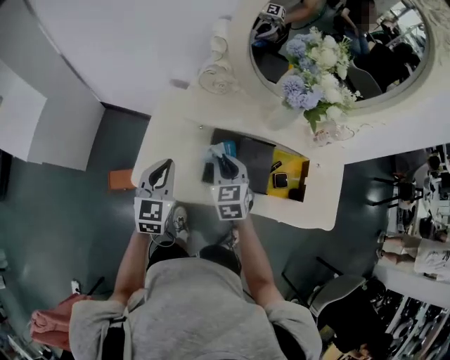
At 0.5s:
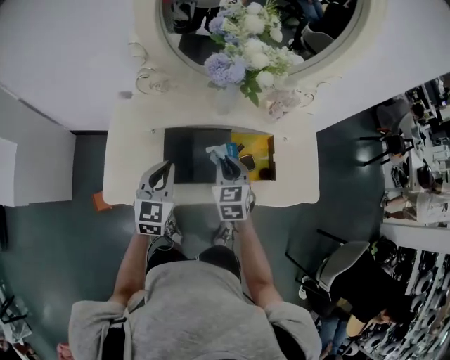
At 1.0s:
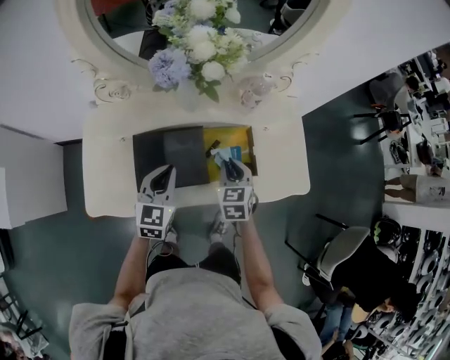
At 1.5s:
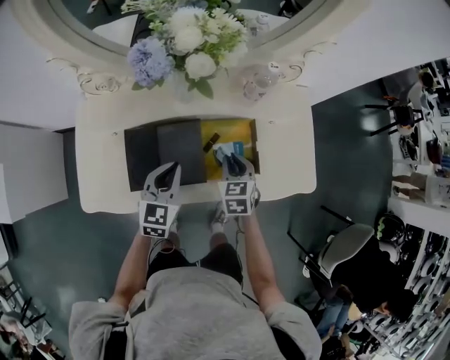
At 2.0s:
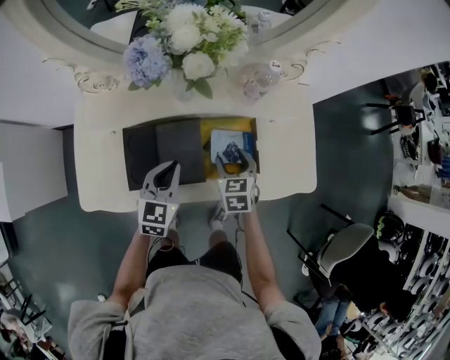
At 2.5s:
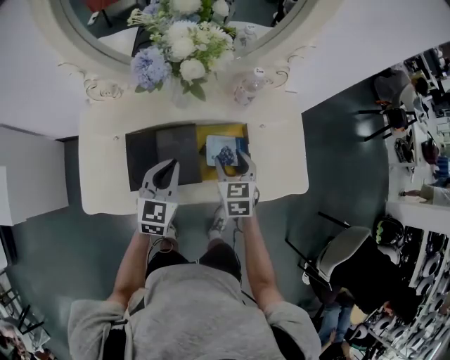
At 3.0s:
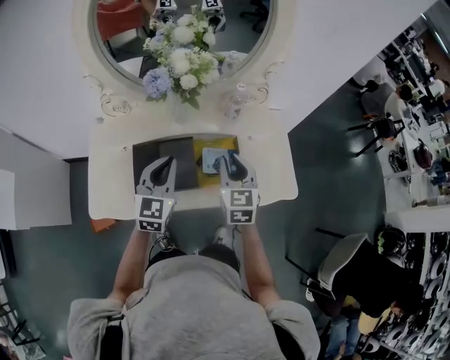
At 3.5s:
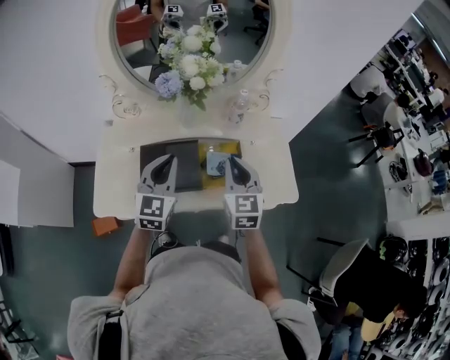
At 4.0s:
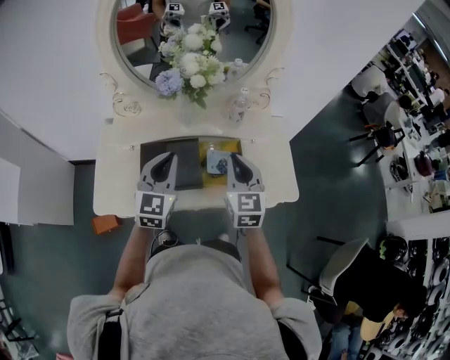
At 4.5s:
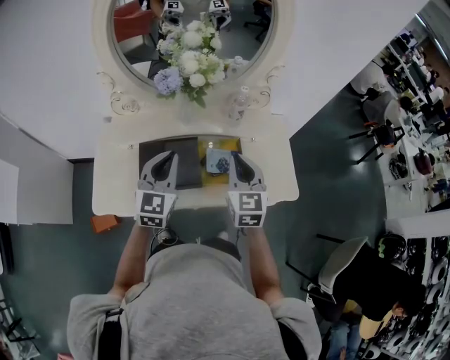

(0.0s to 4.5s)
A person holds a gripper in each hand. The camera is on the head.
0.0s - 2.0s: The left gripper moves to the right, approximately 25 cm, and turns by some 20 degrees. Meanwhile the right gripper travels to the right and downward by roughly 30 cm, turns by roughly 30 degrees, and opens its fingers.
2.0s - 4.5s: The two grippers go roughly 20 cm upward. The left gripper swivels some 20 degrees; the right gripper tips its fingers upward by approximately 30 degrees, and closes.

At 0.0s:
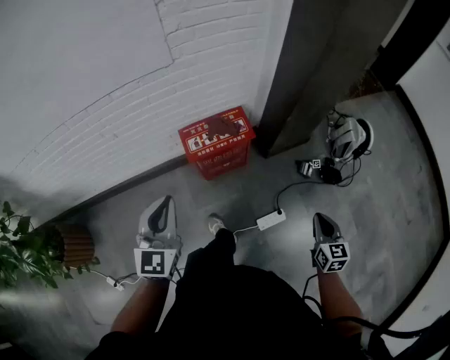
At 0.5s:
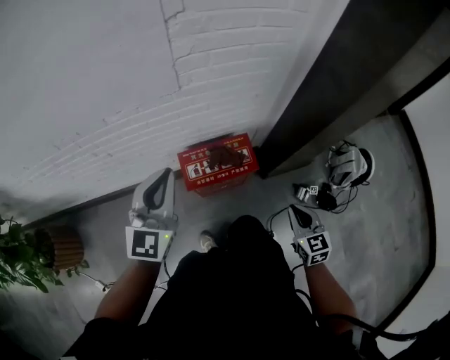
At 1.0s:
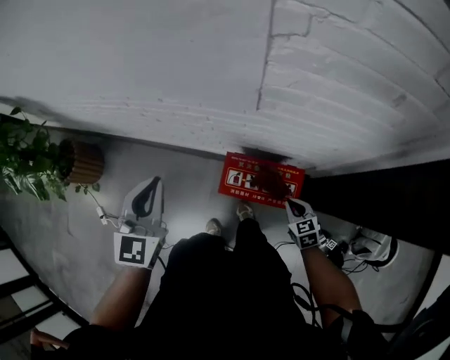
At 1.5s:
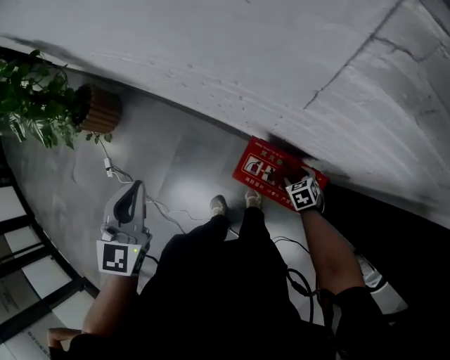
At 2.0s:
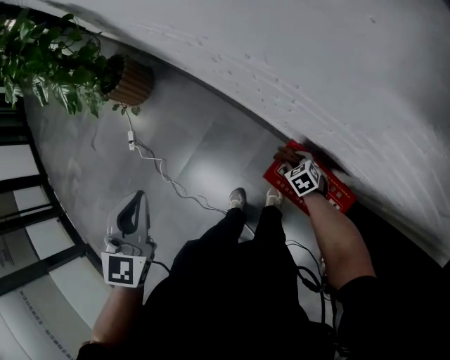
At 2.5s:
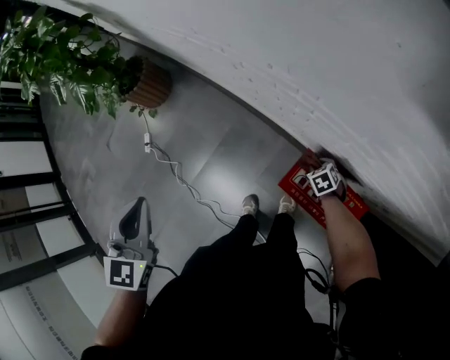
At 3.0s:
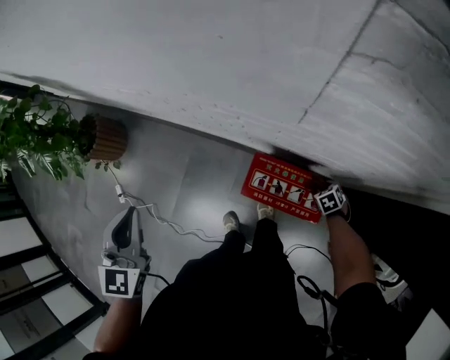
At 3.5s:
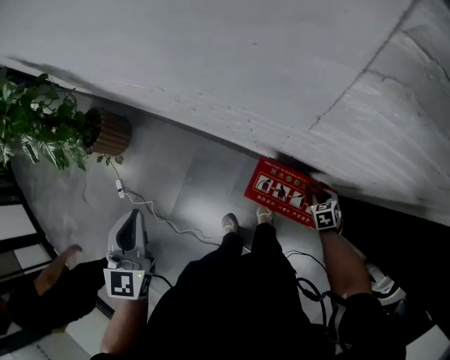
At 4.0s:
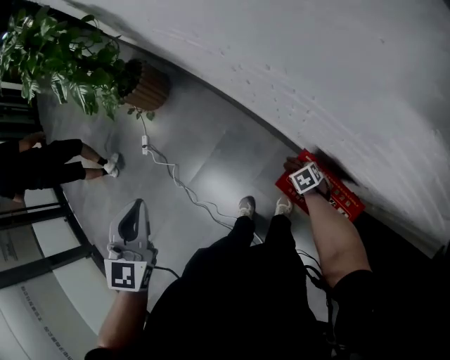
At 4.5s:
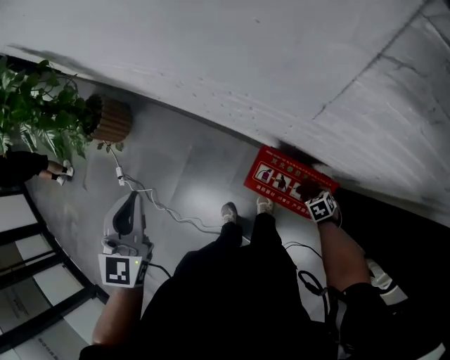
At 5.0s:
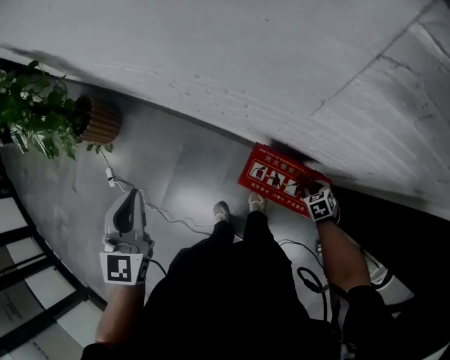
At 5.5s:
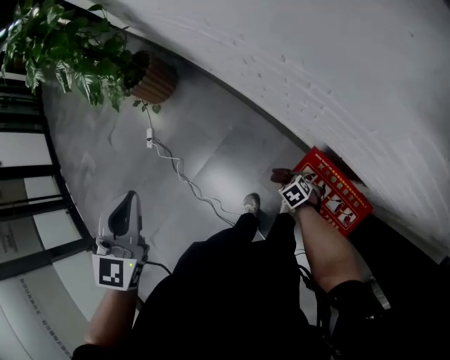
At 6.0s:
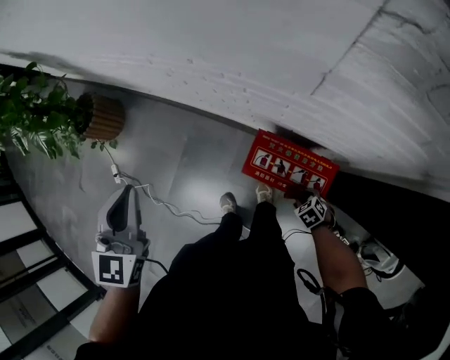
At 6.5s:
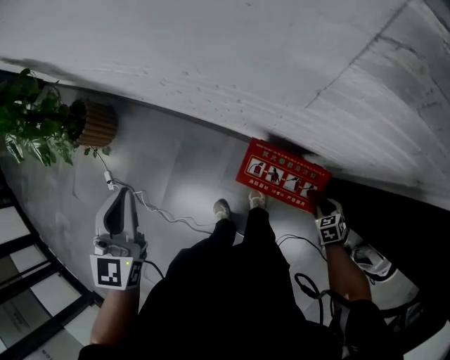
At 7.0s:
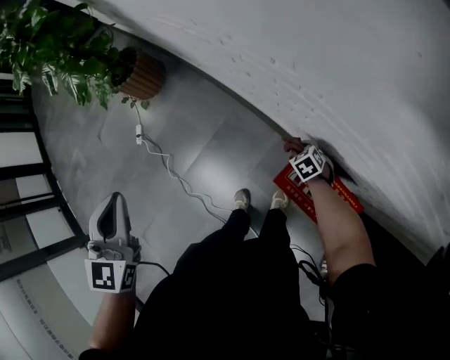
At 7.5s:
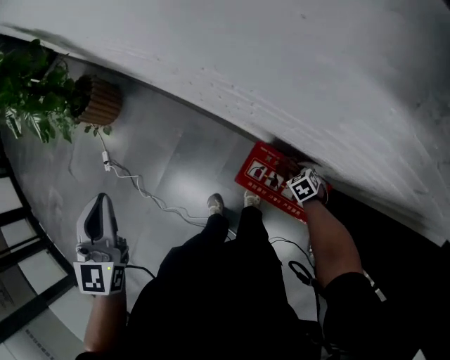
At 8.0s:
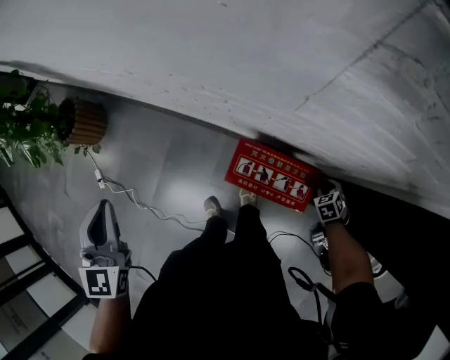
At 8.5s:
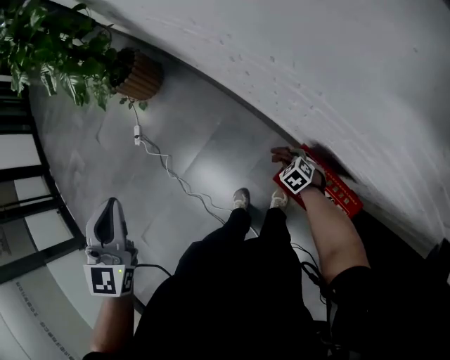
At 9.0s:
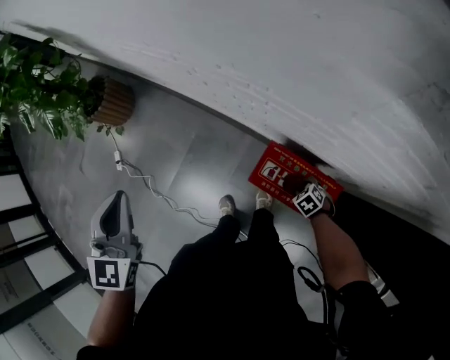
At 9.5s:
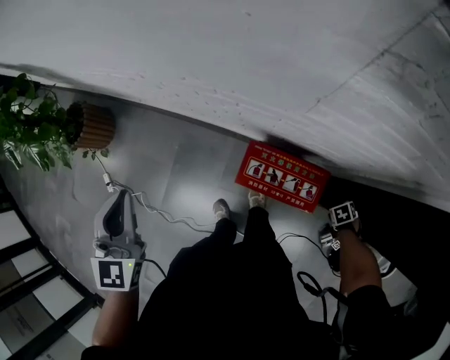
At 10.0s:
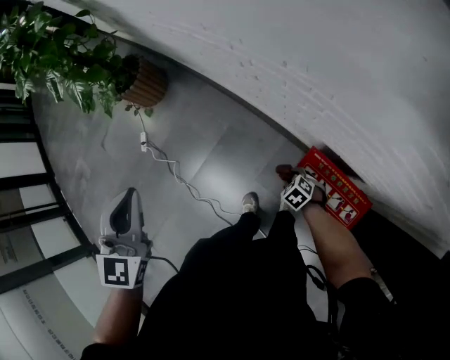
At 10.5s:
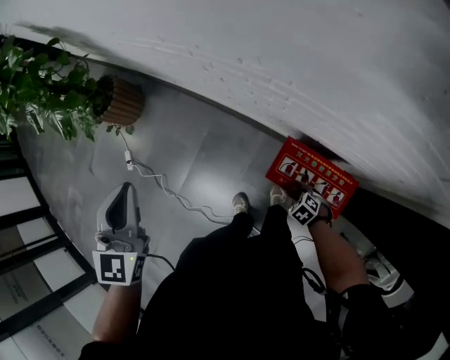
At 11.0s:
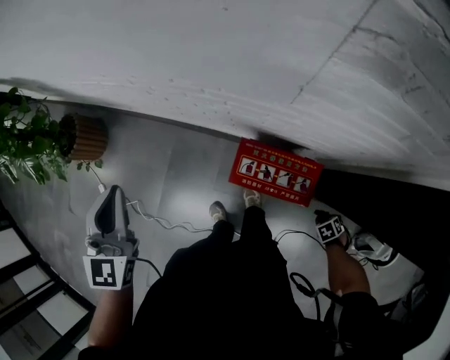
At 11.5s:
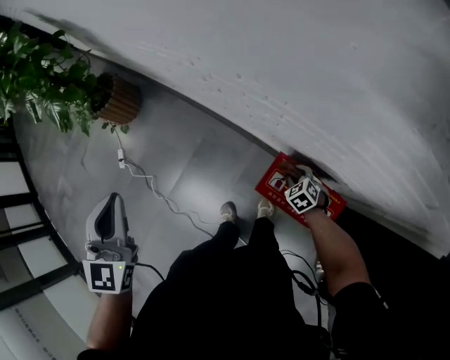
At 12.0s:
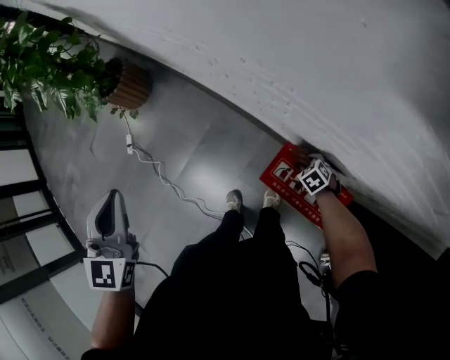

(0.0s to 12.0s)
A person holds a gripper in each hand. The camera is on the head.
0.0s - 2.0s: The right gripper shifts by approximately 70 cm, points its fingers approximately 30 degrees further downward, and opens. Meanwhile the left gripper moves some 20 cm, and swivels some 60 degrees.
2.0s - 4.0s: The left gripper changes place by roughly 5 cm.
4.0s - 6.0s: The left gripper ends up roughly 10 cm from where it was. The right gripper shifts by approximately 25 cm.
8.0s - 10.0s: The right gripper changes place by roughly 40 cm, and swivels approximately 40 degrees. Meanwhile the left gripper ends up some 10 cm from where it was.

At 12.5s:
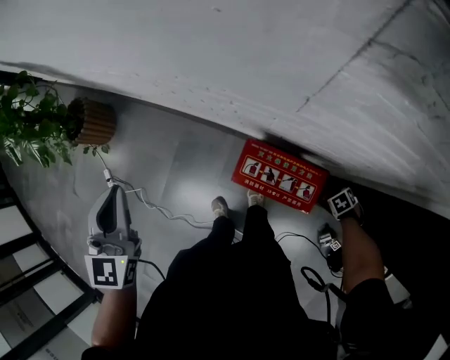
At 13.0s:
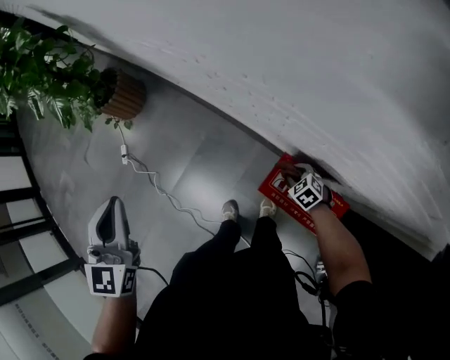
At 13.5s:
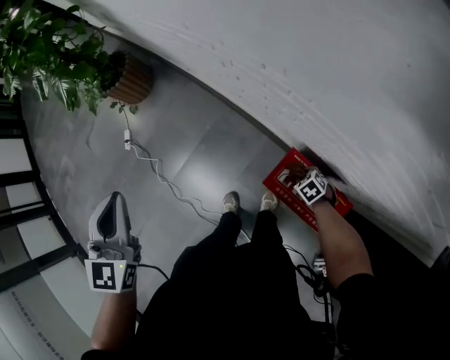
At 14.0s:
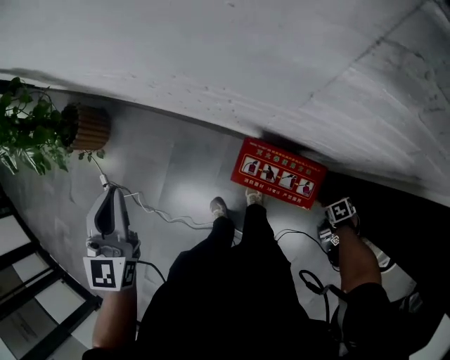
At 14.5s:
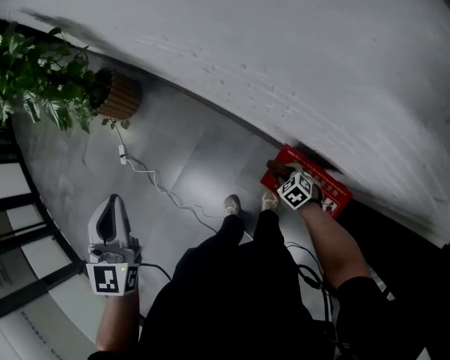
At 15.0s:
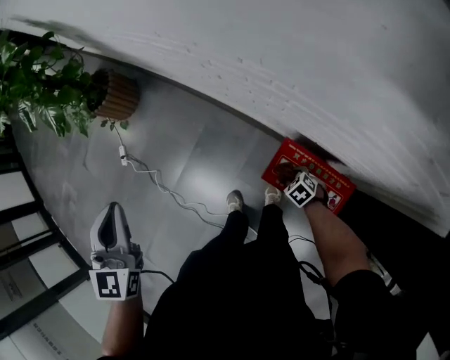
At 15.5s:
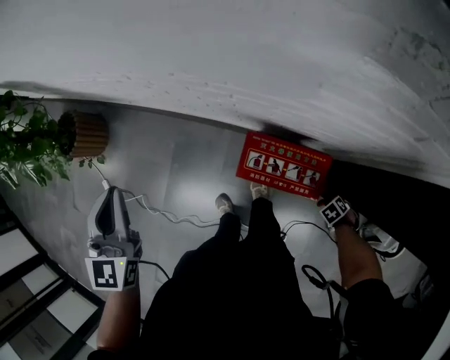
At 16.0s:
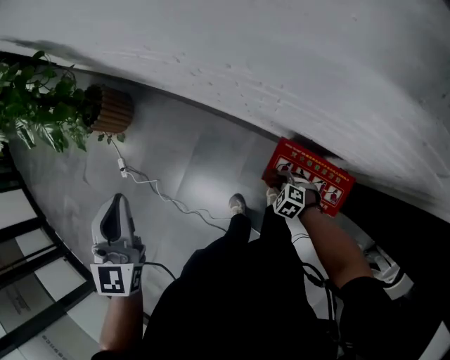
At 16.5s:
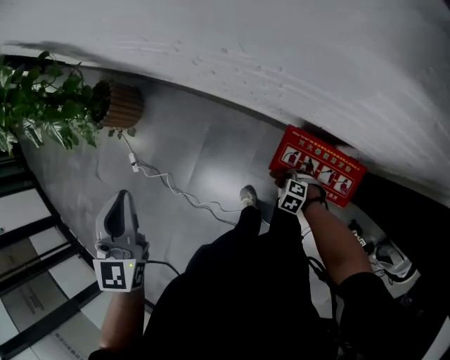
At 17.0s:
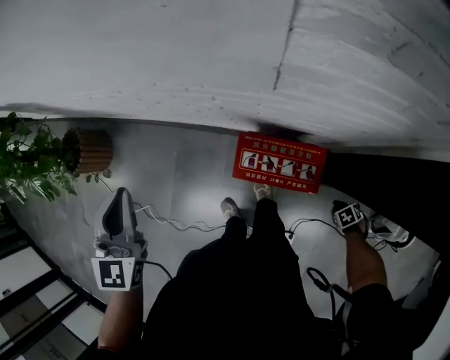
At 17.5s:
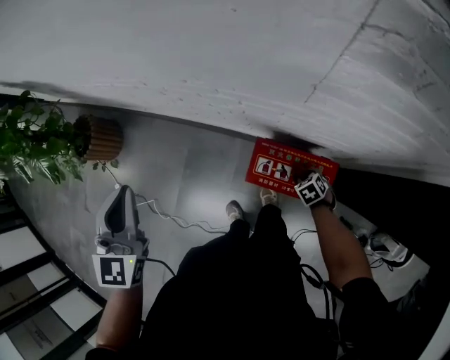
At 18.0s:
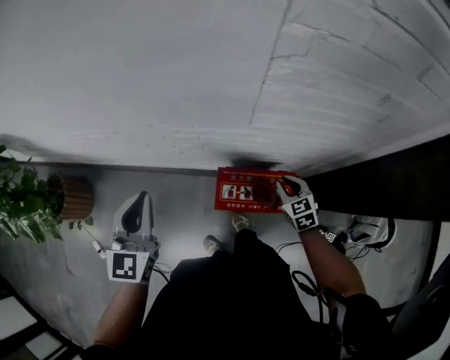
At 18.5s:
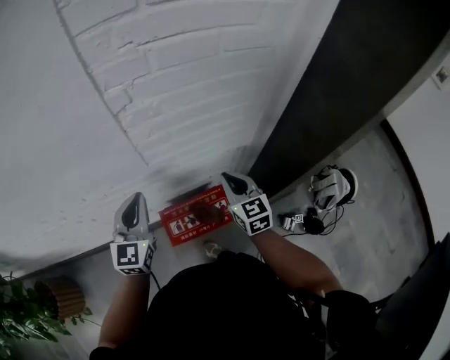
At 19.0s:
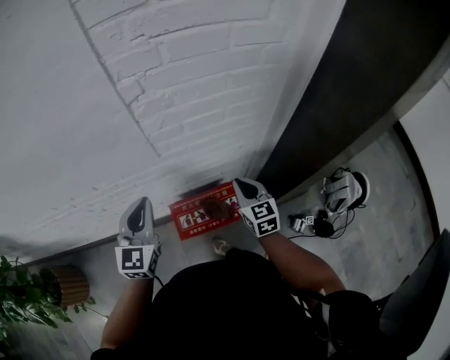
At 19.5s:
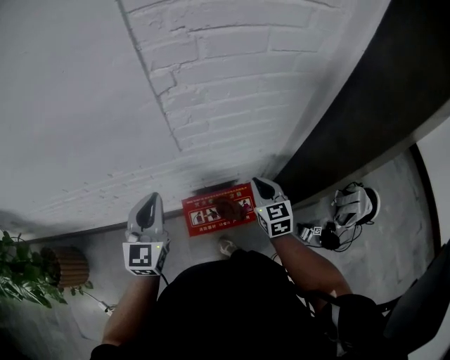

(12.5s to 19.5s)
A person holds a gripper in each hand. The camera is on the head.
12.5s - 14.5s: The left gripper ends up some 10 cm from where it was. Meanwhile the right gripper changes place by roughly 40 cm, and swivels some 40 degrees.
16.0s - 17.5s: The left gripper shifts by about 10 cm; the right gripper swivels about 40 degrees.
17.5s - 19.5s: The right gripper shifts approximately 30 cm upward, tips its fingers upward by approximately 50 degrees, and closes its fingers, while the left gripper shifts by roughly 25 cm, and swivels about 40 degrees.

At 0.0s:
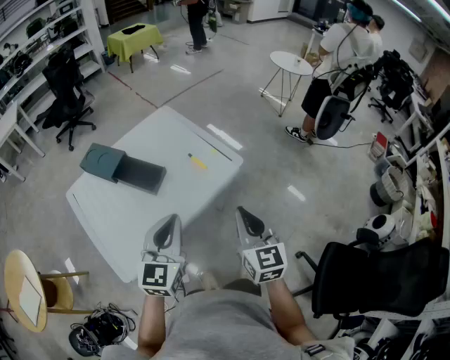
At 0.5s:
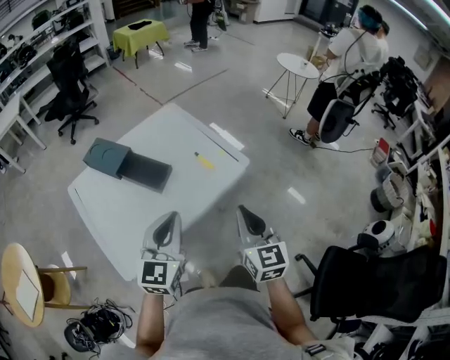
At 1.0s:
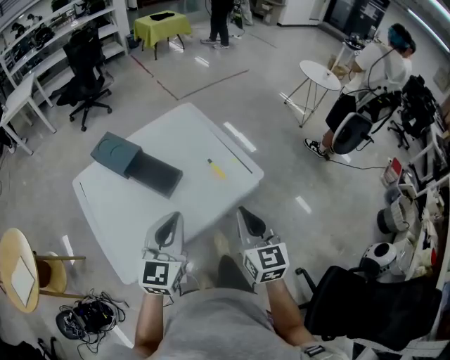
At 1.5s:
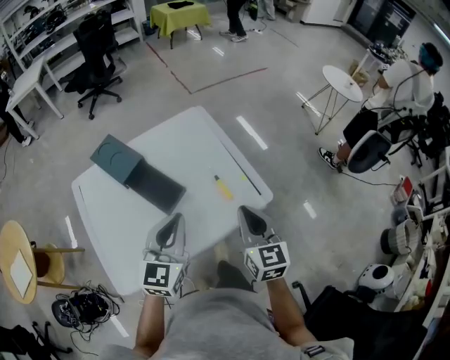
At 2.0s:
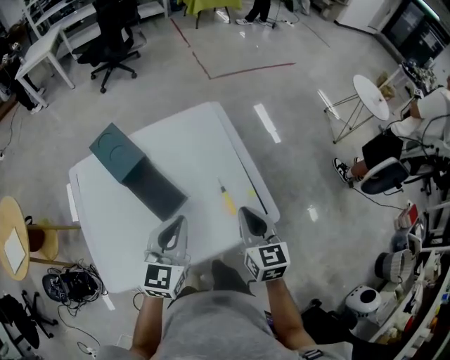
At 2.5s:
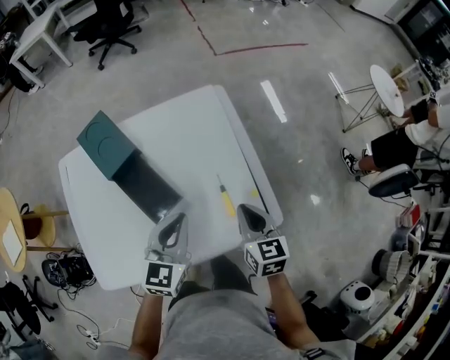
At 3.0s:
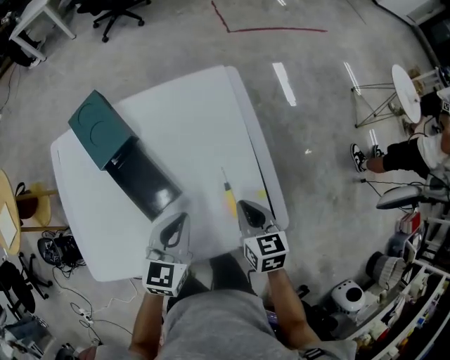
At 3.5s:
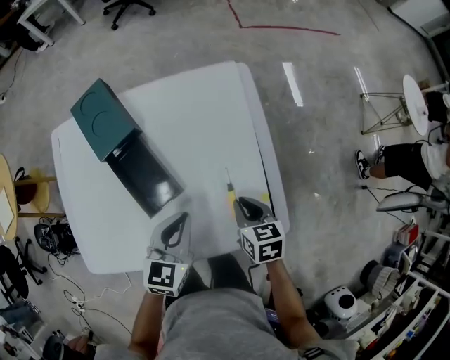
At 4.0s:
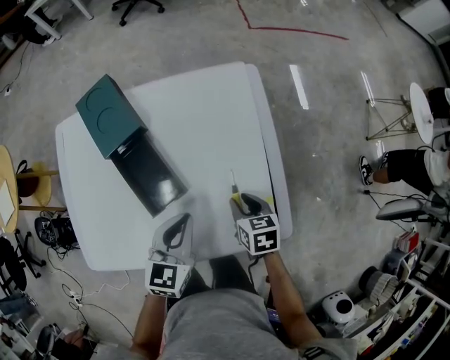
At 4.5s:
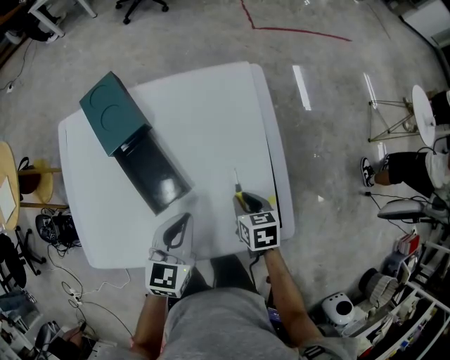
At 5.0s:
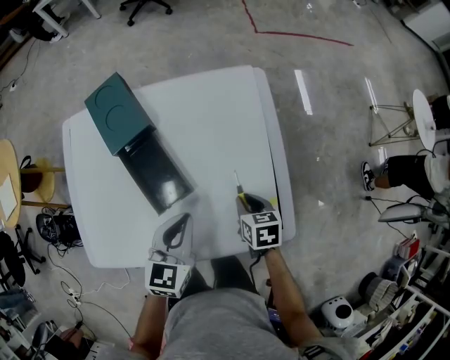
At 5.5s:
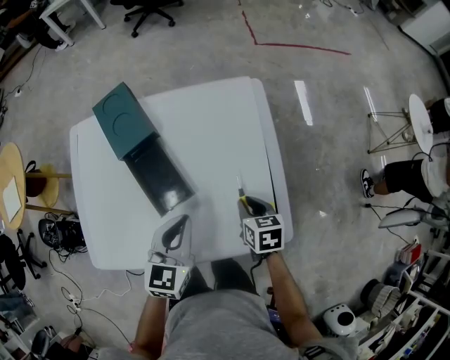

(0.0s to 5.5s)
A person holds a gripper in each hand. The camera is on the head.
0.0s - 2.0s: Both grippers move forward, some 25 cm. The right gripper changes its angle by approximately 30 degrees. Meanwhile the left gripper rotates about 20 degrees.
2.0s - 3.5s: The left gripper goes approximately 15 cm downward. The right gripper travels downward and forward by some 20 cm, and swivels approximately 30 degrees.
3.5s - 5.5s: The grippers move only a little.
